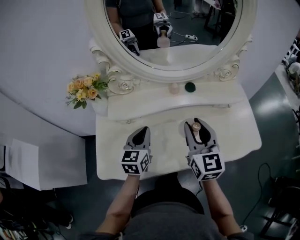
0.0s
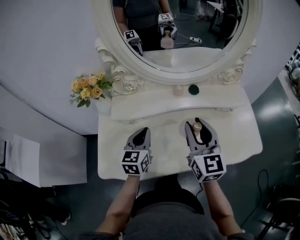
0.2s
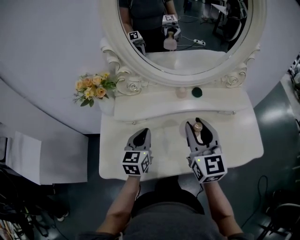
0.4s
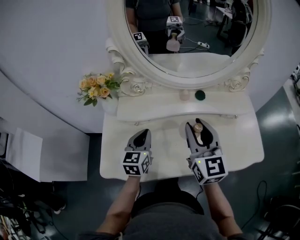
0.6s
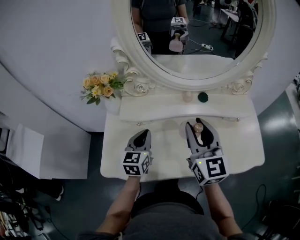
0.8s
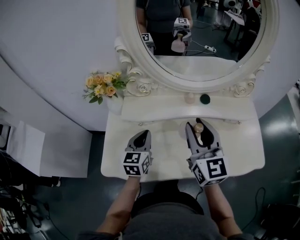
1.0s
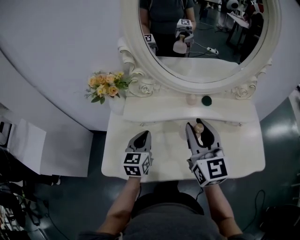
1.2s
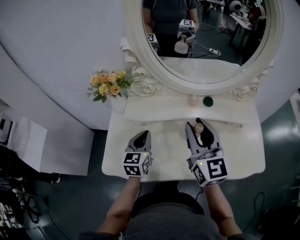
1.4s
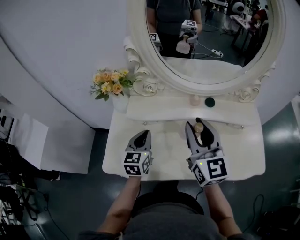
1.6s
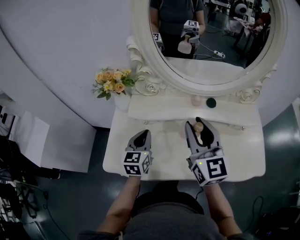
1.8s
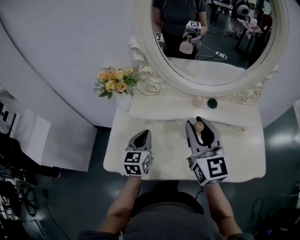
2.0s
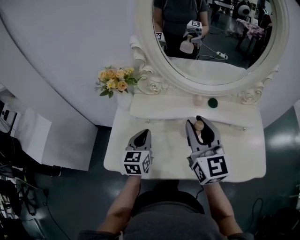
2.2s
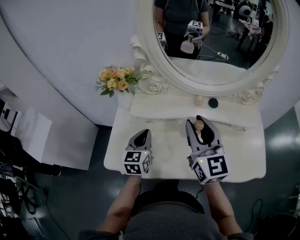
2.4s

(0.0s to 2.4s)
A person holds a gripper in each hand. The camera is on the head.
0.0s - 1.2s: The left gripper travels to the left by about 5 cm, while the right gripper travels upward and to the left by roughly 10 cm.
1.2s - 2.4s: The grippers make only small movements.

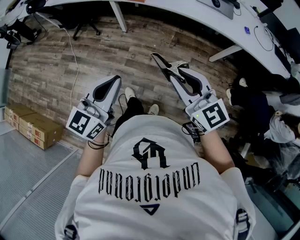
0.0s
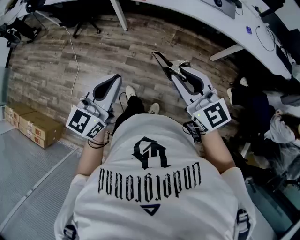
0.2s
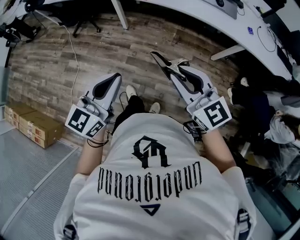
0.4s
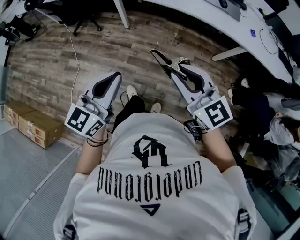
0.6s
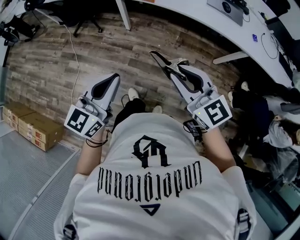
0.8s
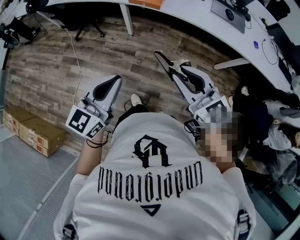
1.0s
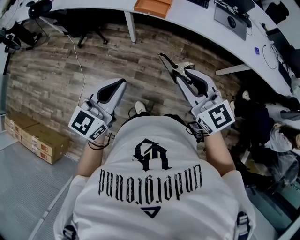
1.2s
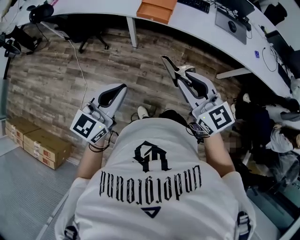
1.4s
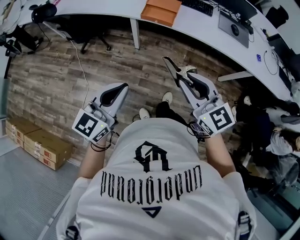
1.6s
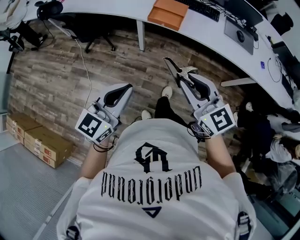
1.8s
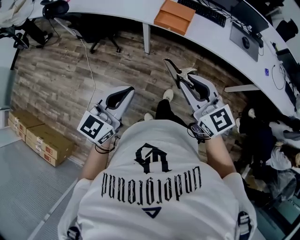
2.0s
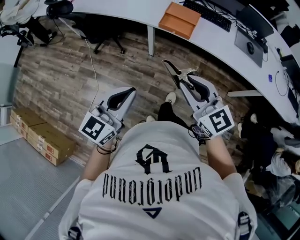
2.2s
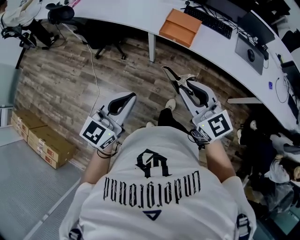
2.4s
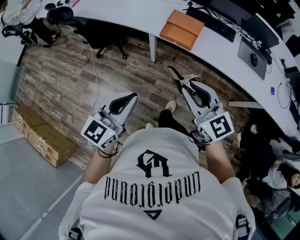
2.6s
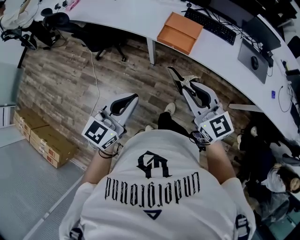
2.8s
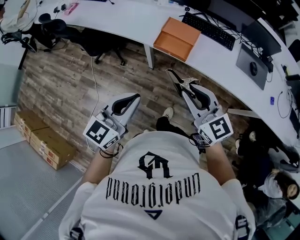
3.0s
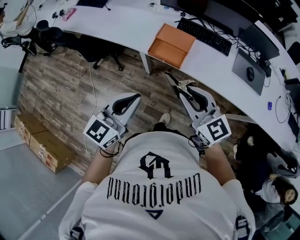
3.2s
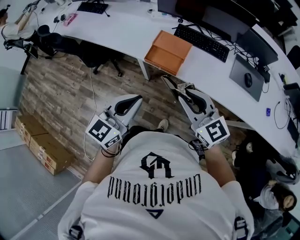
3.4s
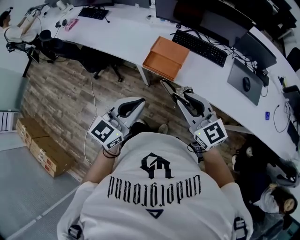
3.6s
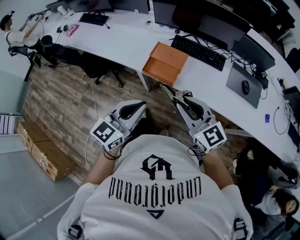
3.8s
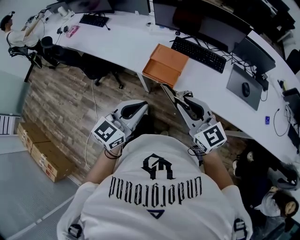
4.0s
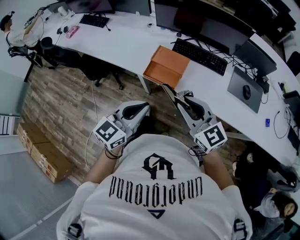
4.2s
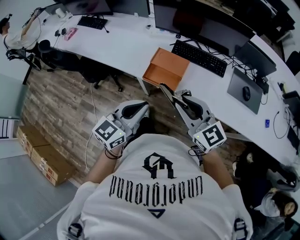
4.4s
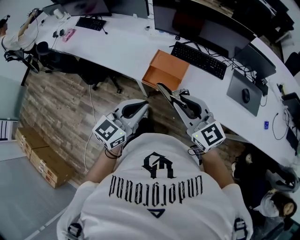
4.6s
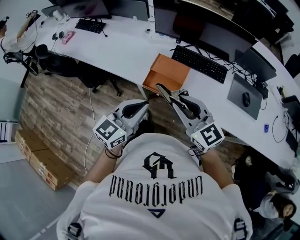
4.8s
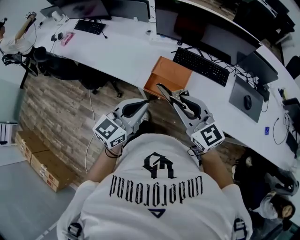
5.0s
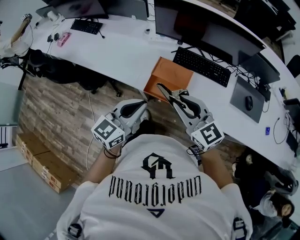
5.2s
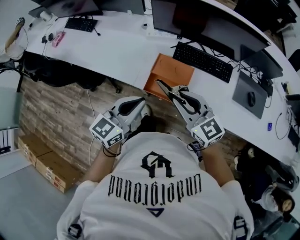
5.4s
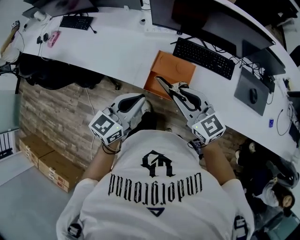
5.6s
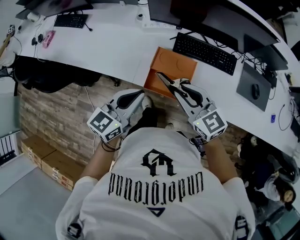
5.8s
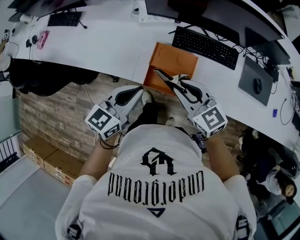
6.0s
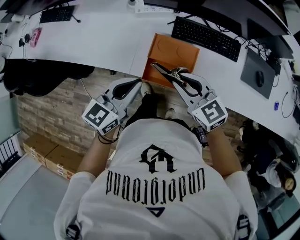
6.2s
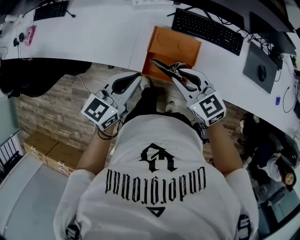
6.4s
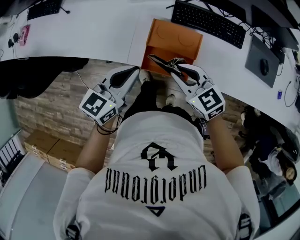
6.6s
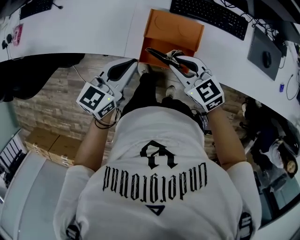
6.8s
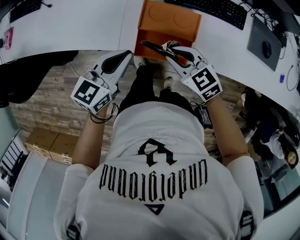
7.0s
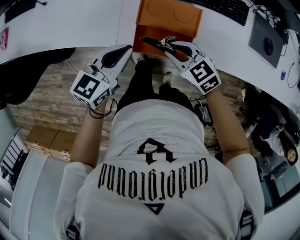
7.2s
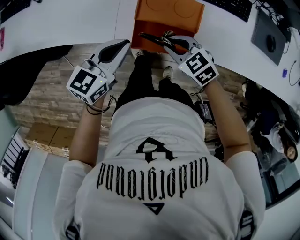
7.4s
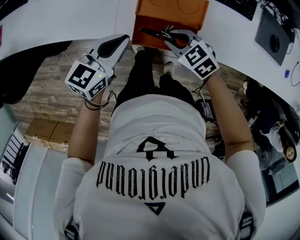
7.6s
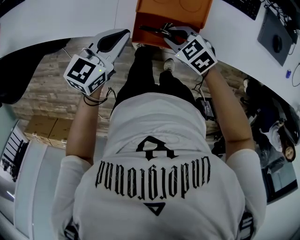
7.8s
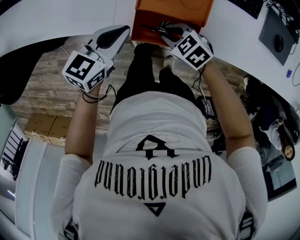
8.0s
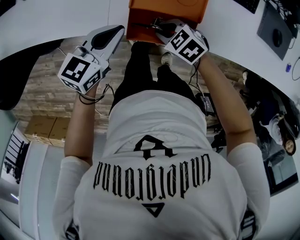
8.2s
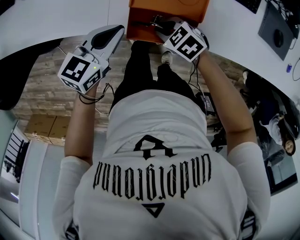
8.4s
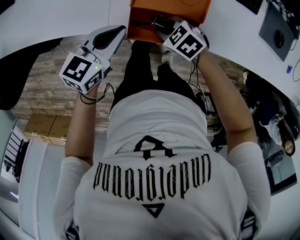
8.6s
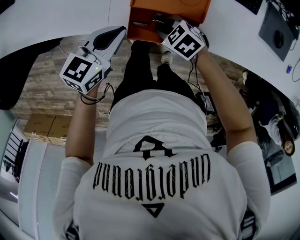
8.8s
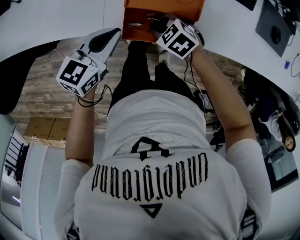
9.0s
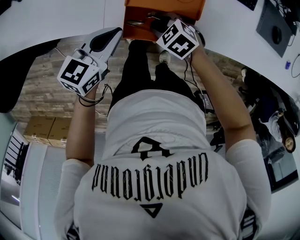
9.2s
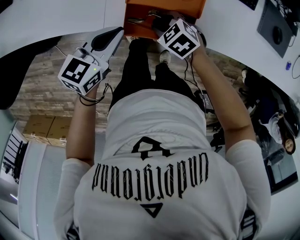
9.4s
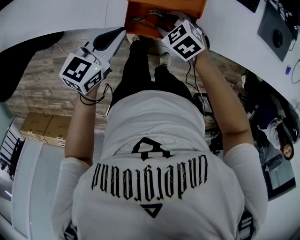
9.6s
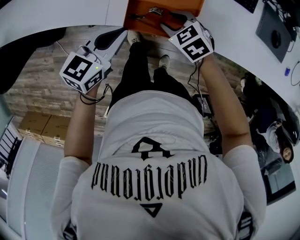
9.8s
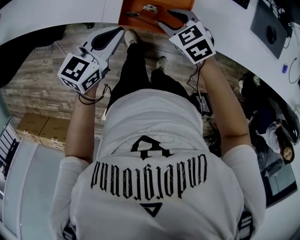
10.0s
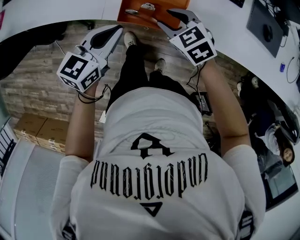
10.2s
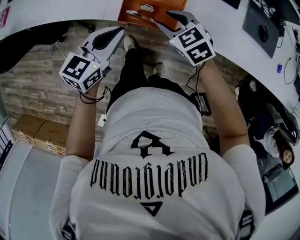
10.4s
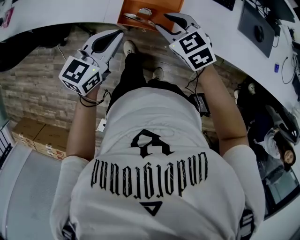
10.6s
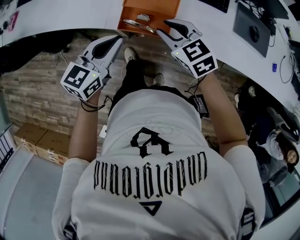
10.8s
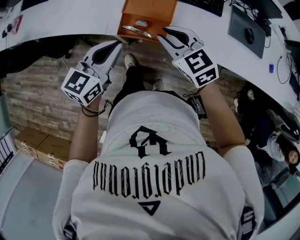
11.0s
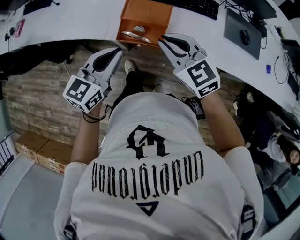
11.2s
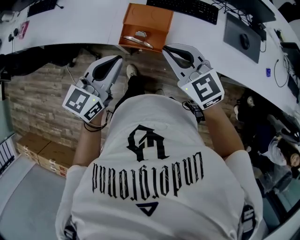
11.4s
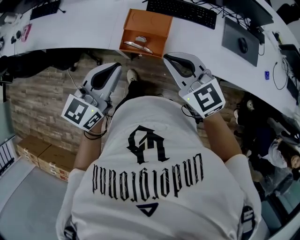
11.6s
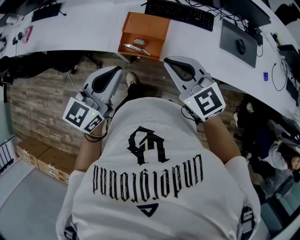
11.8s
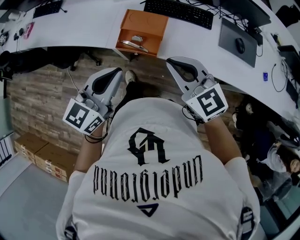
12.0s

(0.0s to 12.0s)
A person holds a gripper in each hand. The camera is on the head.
0.0s - 1.6s: Both grippers travel together forward and to the left, roughly 30 cm.
1.6s - 3.0s: The two grippers go some 20 cm forward.
3.0s - 4.4s: Both grippers travel together forward and to the right, roughly 15 cm.
4.4s - 6.0s: The left gripper travels forward by roughly 25 cm. The right gripper heads forward and downward, covering some 25 cm.
6.0s - 7.6s: Both grippers travel together downward, some 20 cm. The right gripper rotates roughly 30 degrees.
7.6s - 9.0s: The right gripper travels downward by about 5 cm.
9.0s - 10.4s: The left gripper moves about 15 cm, while the right gripper is displaced upward by about 15 cm, and turns by approximately 20 degrees.
10.4s - 12.0s: The grippers both shift upward and backward by roughly 25 cm. The right gripper turns by about 30 degrees, and closes up.

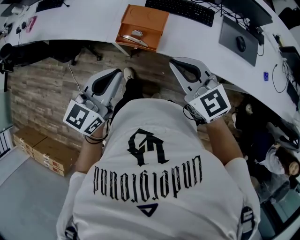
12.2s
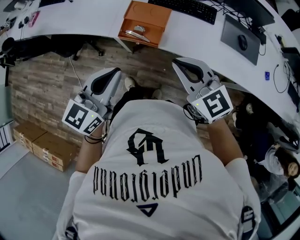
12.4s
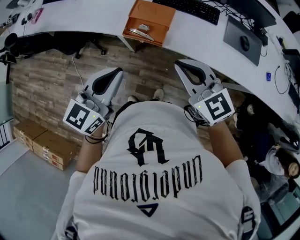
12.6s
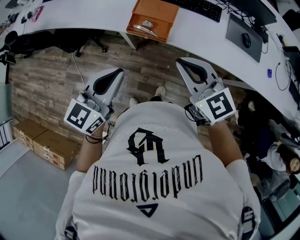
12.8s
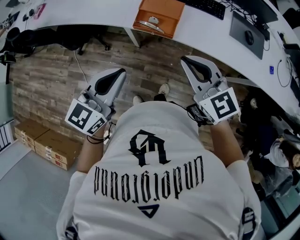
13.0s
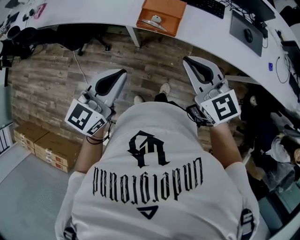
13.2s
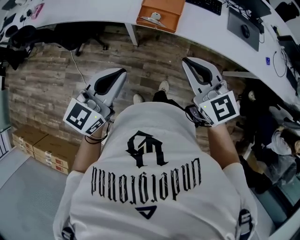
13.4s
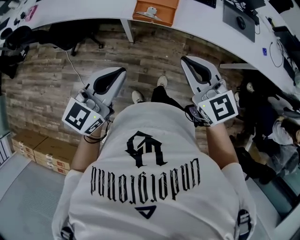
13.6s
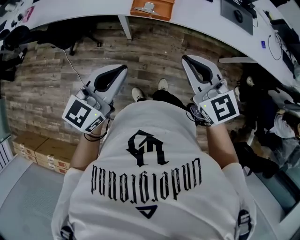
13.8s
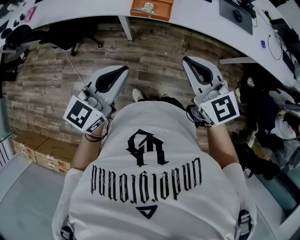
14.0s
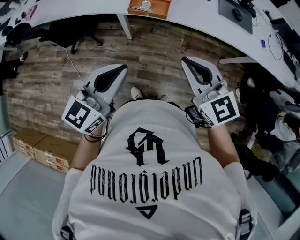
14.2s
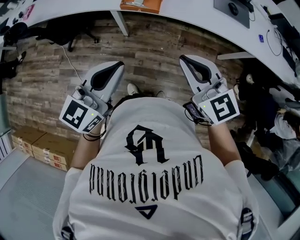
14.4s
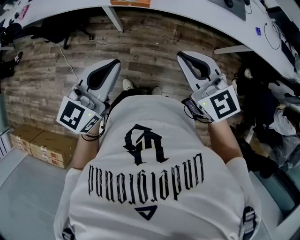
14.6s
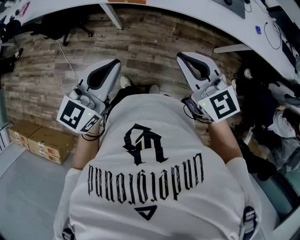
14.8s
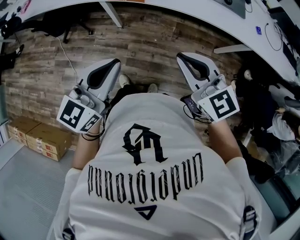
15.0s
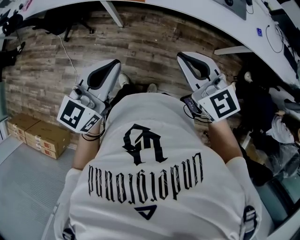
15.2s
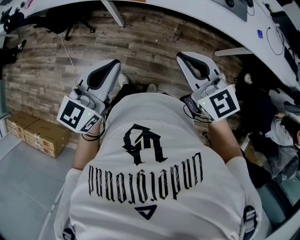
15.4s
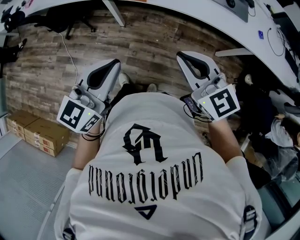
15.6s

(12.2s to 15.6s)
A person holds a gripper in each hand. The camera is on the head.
12.2s - 13.8s: Both grippers move backward and to the left, about 25 cm.
13.8s - 15.6s: The two grippers go about 20 cm to the right and backward.

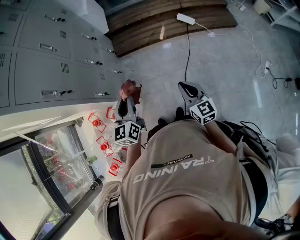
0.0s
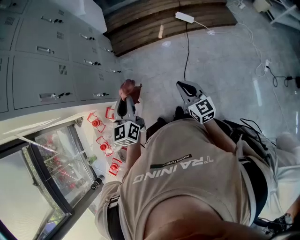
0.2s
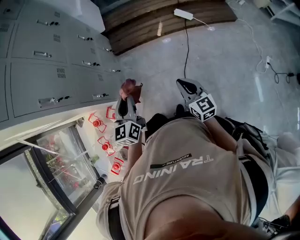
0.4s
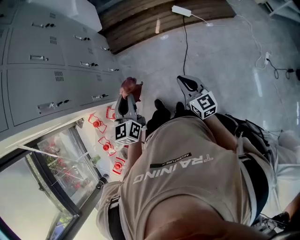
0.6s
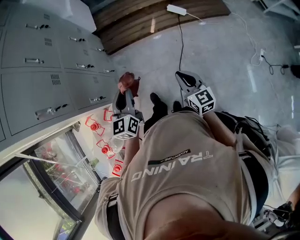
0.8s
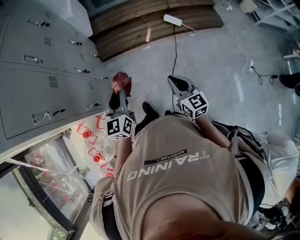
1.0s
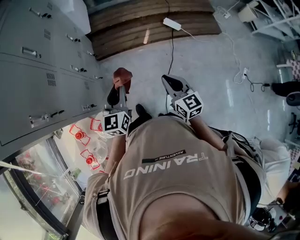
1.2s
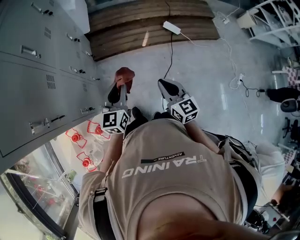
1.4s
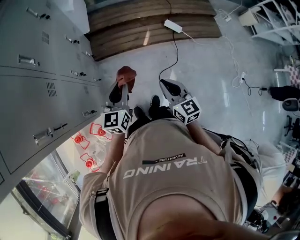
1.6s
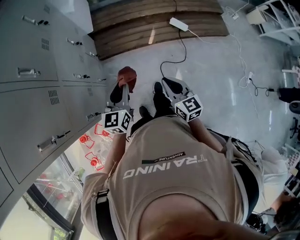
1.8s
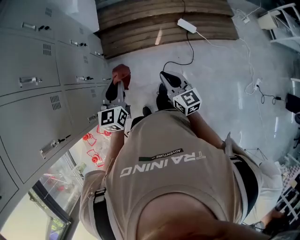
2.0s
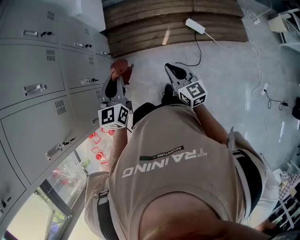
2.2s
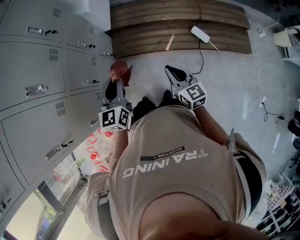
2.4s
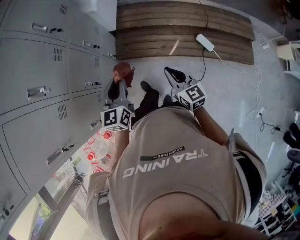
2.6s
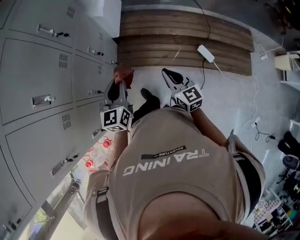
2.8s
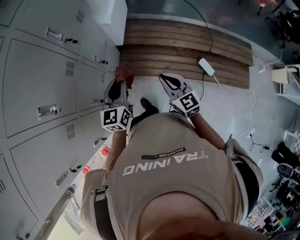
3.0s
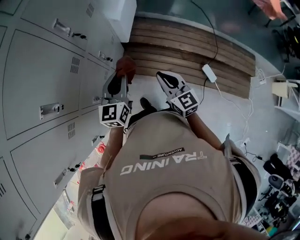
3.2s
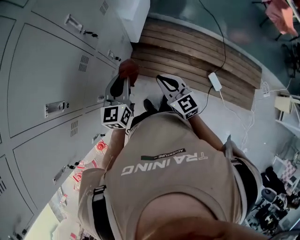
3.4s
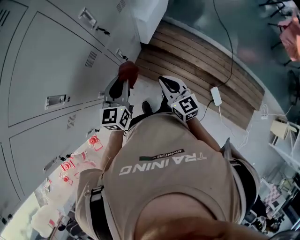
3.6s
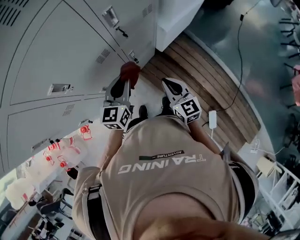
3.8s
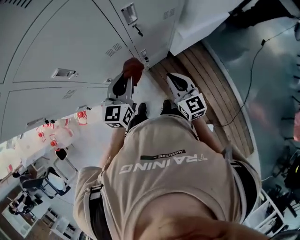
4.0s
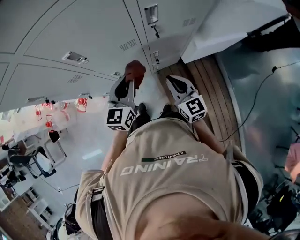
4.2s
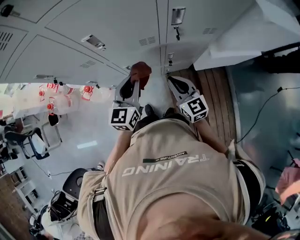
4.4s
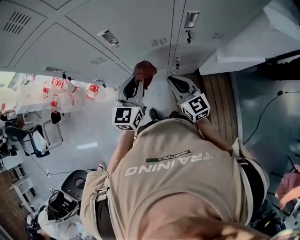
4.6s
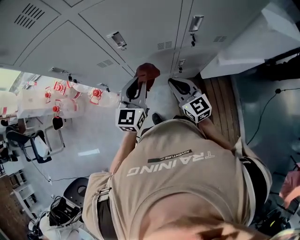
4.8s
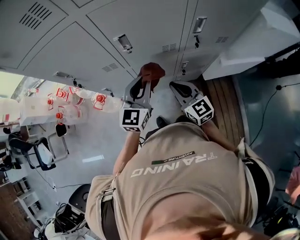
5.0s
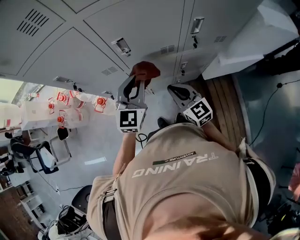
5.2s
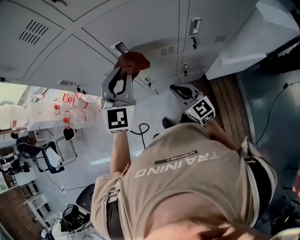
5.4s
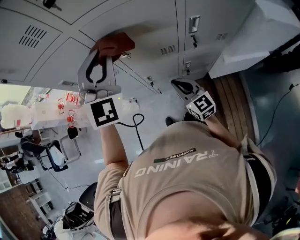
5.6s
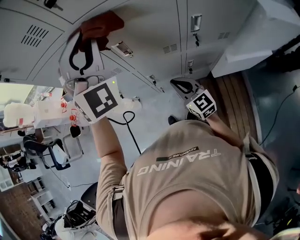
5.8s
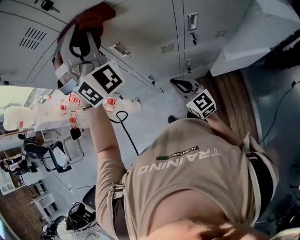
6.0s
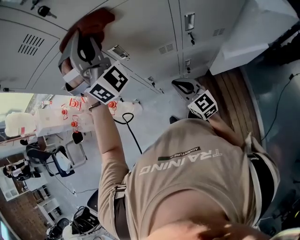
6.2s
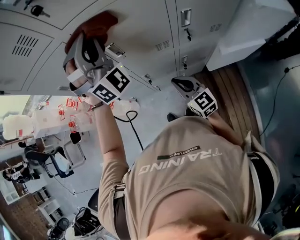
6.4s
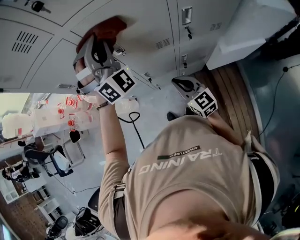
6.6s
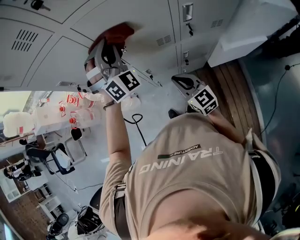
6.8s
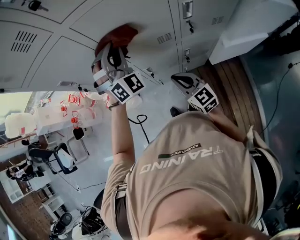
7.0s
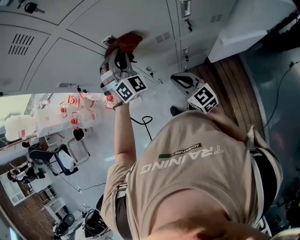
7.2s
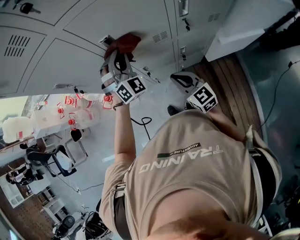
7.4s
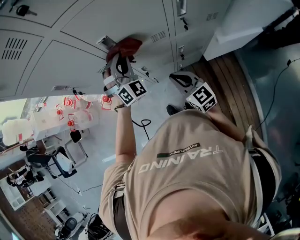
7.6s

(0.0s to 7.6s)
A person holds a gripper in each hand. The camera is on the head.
0.0s - 1.6s: The grippers both shift forward by some 20 cm.
1.6s - 3.0s: The grippers both shift forward by some 35 cm. The right gripper swivels about 30 degrees. The left gripper rotates some 20 degrees.
3.0s - 4.6s: The left gripper moves approximately 15 cm, and changes its angle by approximately 60 degrees. The right gripper moves some 25 cm, and turns by some 70 degrees.
4.6s - 6.0s: The right gripper shifts by approximately 5 cm. Meanwhile the left gripper heads upward, covering roughly 30 cm, and rolls clockwise, seen from behind, by some 80 degrees.
6.0s - 7.6s: The left gripper shifts about 30 cm downward, and rotates some 30 degrees.
